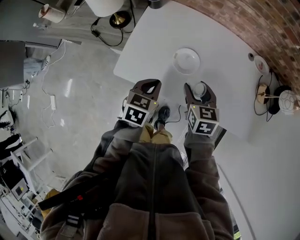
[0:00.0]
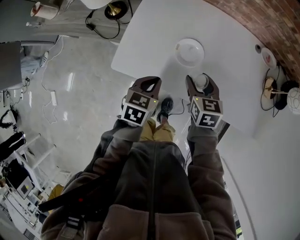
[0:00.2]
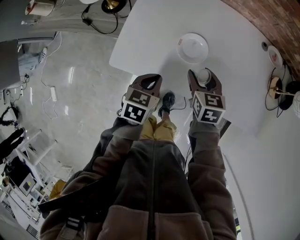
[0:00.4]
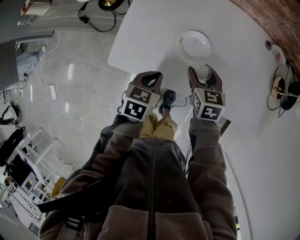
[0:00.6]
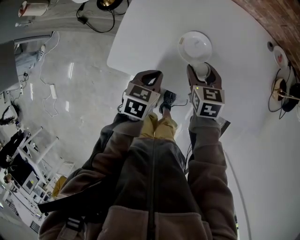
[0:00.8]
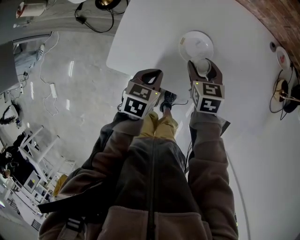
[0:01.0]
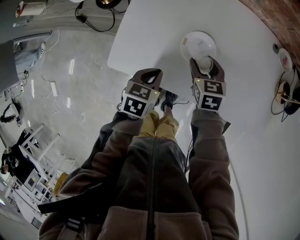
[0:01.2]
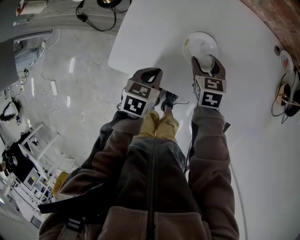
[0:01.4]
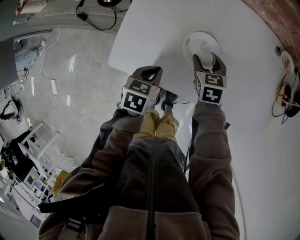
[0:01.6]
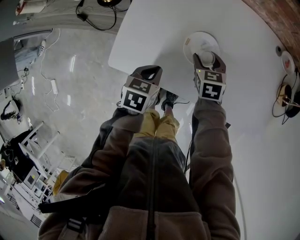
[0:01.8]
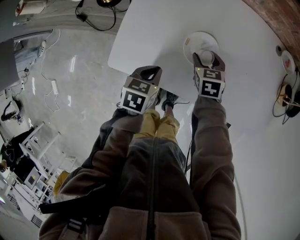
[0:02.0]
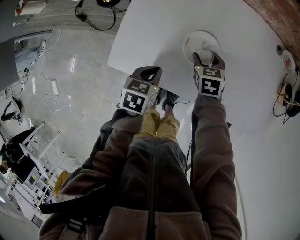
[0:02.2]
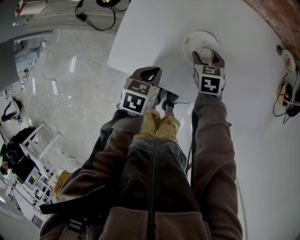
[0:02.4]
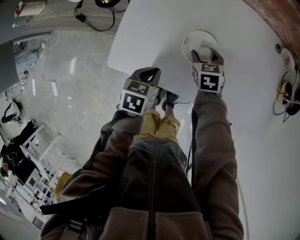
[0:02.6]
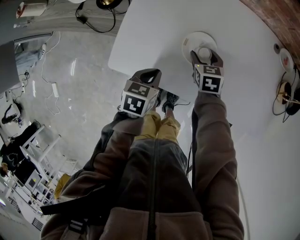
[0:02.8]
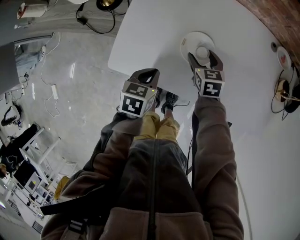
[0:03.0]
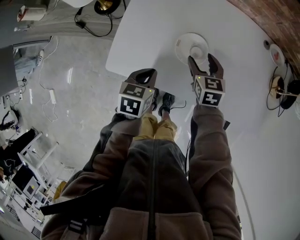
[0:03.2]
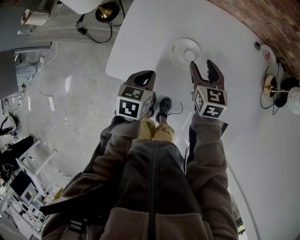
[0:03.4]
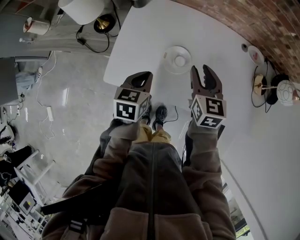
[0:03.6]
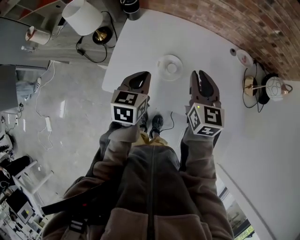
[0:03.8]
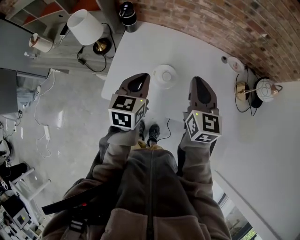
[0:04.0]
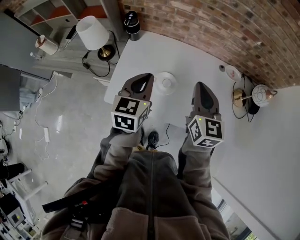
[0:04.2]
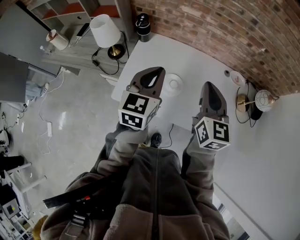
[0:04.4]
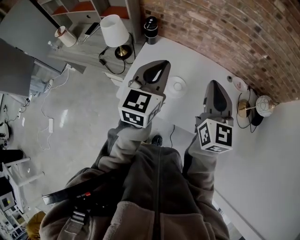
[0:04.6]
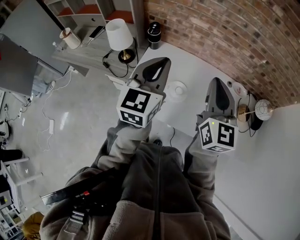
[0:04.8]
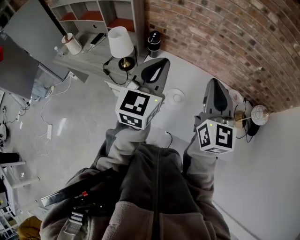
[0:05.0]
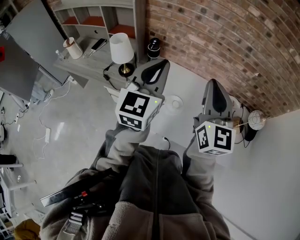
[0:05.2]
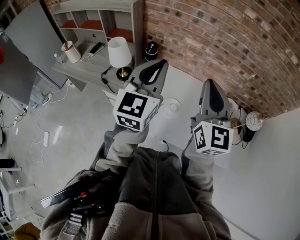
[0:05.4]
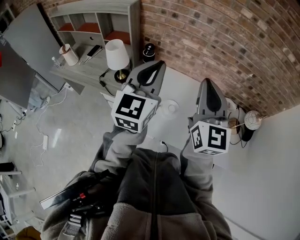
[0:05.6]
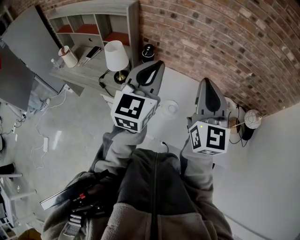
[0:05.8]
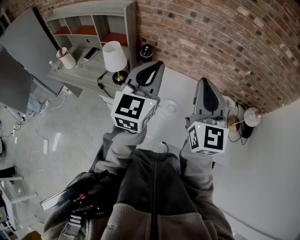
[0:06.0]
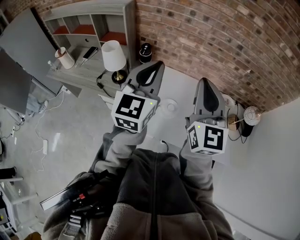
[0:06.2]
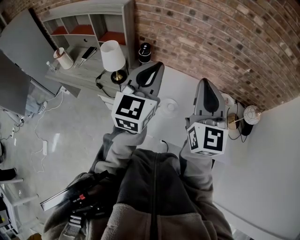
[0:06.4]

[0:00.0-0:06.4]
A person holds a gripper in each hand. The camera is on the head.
0:00.0 to 0:01.6: The right gripper travels downward and forward by about 20 cm; the left gripper goes roughly 10 cm downward.
0:01.6 to 0:03.2: There are only small adjustments of the grippers.
0:03.2 to 0:04.8: The two grippers go approximately 40 cm upward. The right gripper tilts its fingers some 40 degrees upward, and closes its fingers; the left gripper tilts its fingers roughly 50 degrees upward.
0:04.8 to 0:06.4: Both grippers move upward, some 5 cm.

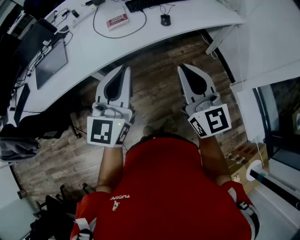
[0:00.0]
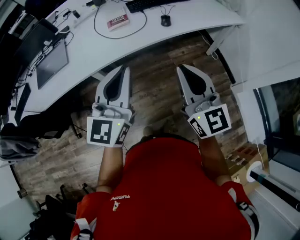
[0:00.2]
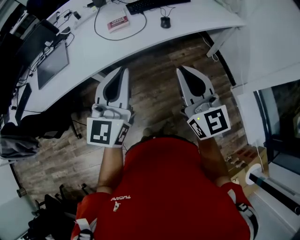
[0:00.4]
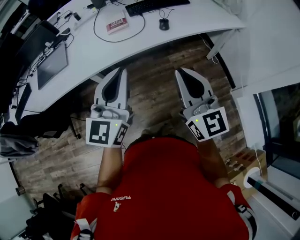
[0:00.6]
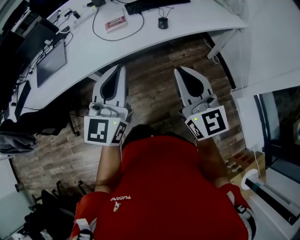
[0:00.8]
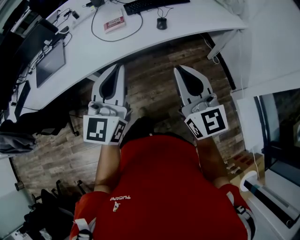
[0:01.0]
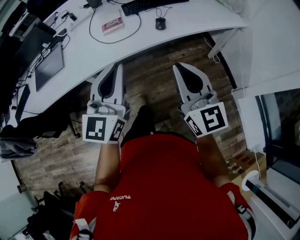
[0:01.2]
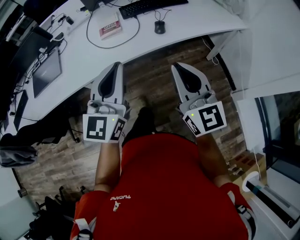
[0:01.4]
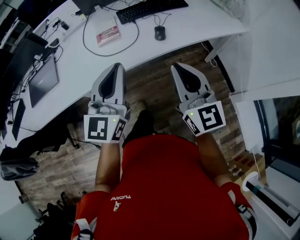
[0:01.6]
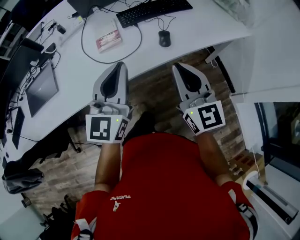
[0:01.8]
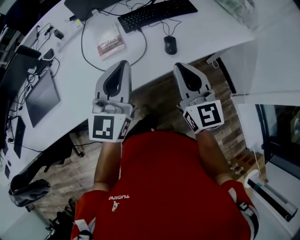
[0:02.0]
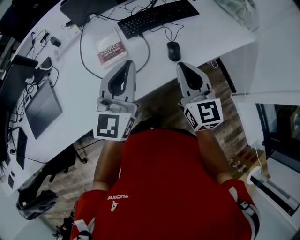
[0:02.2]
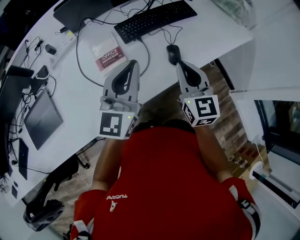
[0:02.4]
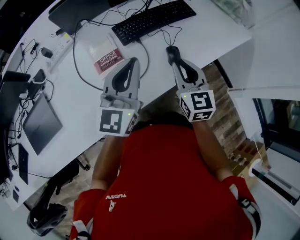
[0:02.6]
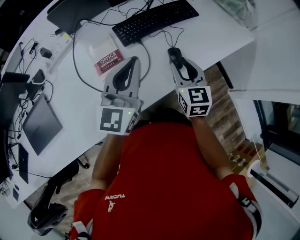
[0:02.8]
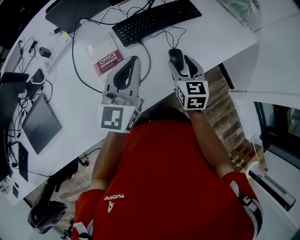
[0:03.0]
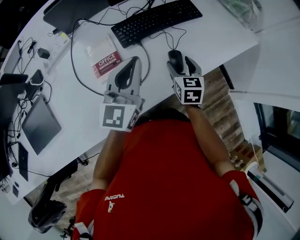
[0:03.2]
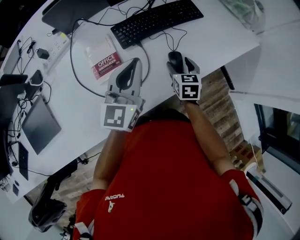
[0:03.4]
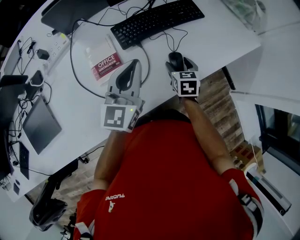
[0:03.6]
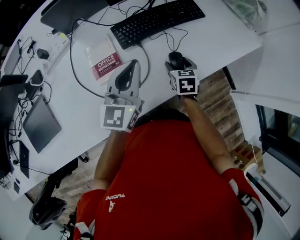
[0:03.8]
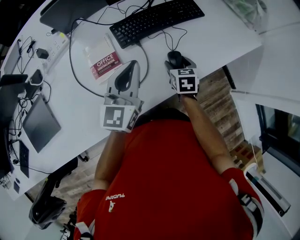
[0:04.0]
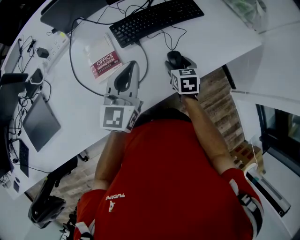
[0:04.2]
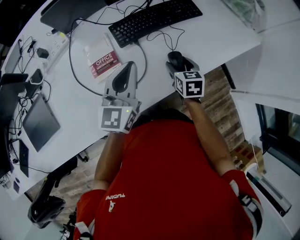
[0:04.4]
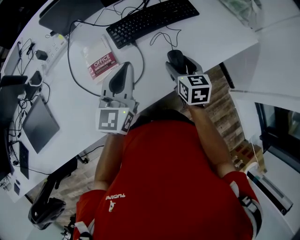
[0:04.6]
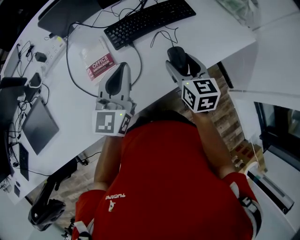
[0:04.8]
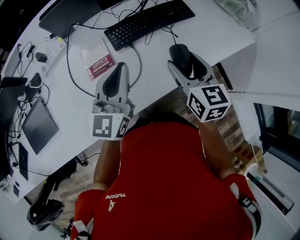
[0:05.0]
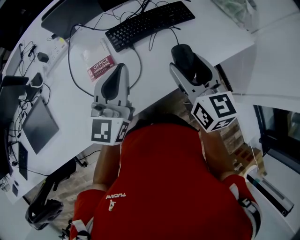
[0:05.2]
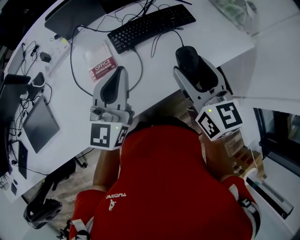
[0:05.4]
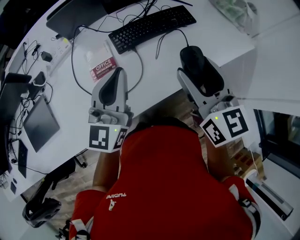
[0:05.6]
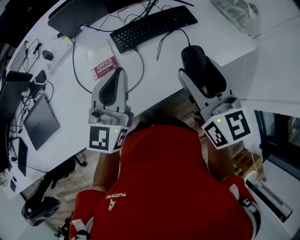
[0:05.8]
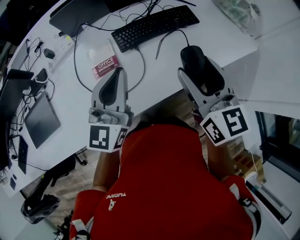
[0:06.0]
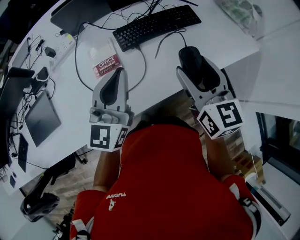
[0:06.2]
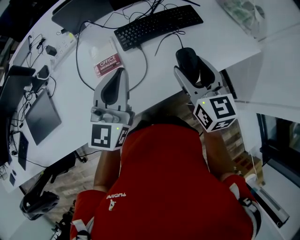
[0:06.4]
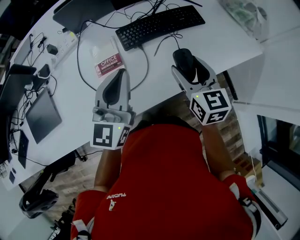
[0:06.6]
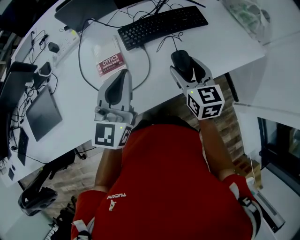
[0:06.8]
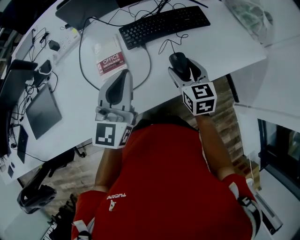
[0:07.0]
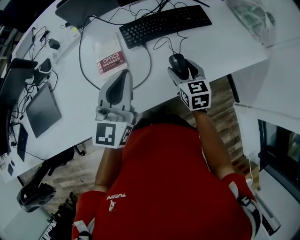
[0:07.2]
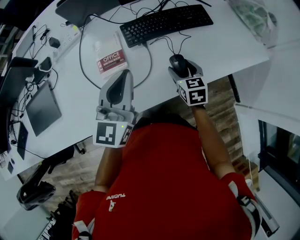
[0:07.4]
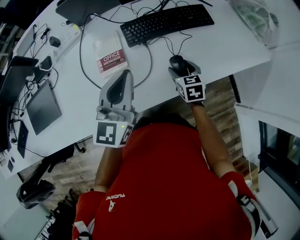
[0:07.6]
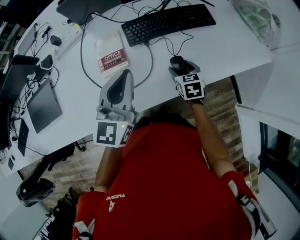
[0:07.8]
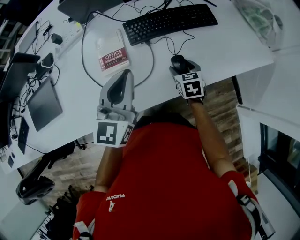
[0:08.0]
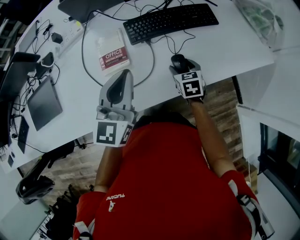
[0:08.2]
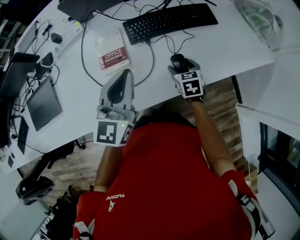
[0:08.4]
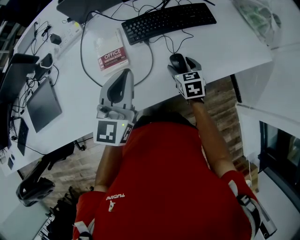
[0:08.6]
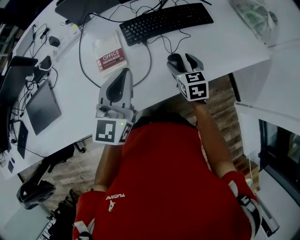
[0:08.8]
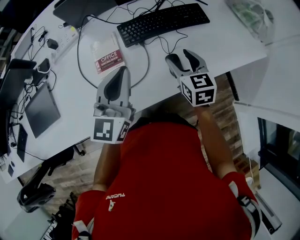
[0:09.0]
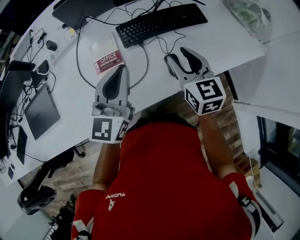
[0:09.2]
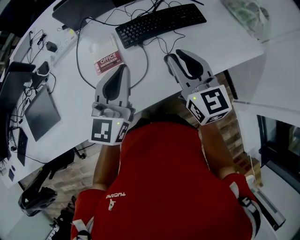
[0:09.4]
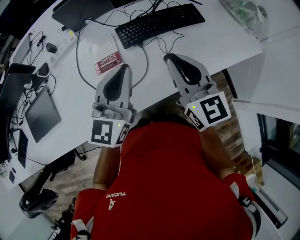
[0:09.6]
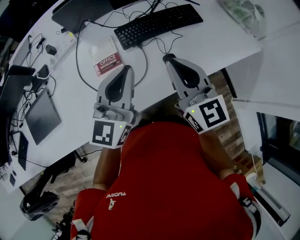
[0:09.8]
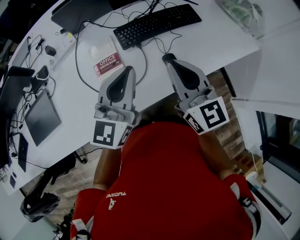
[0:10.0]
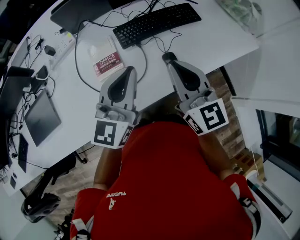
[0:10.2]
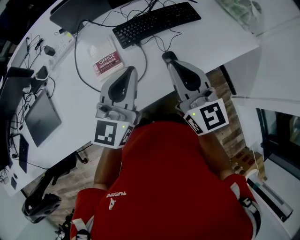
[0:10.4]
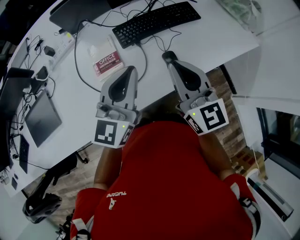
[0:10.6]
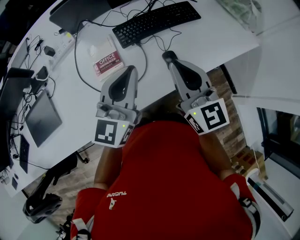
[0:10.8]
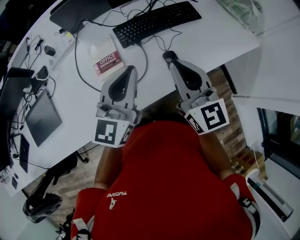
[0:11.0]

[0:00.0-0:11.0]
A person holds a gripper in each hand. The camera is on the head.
0:00.0 to 0:01.6: The two grippers go some 15 cm forward.
0:01.6 to 0:03.2: The right gripper goes about 40 cm forward and downward, points its fingers roughly 40 degrees further downward, and opens up. Meanwhile the left gripper travels forward by roughly 30 cm.
0:03.2 to 0:04.8: The right gripper heads upward, covering about 10 cm.
0:04.8 to 0:06.2: The right gripper shifts roughly 15 cm upward. The left gripper heads upward, covering roughly 5 cm.
0:06.2 to 0:07.8: The right gripper moves downward, some 25 cm, and tilts its fingers about 30 degrees downward.
0:07.8 to 0:09.4: The right gripper is displaced upward by some 25 cm, points its fingers some 40 degrees further upward, and closes its fingers.
0:09.4 to 0:11.0: The right gripper ends up approximately 5 cm from where it was.

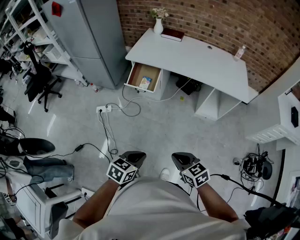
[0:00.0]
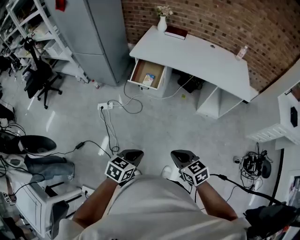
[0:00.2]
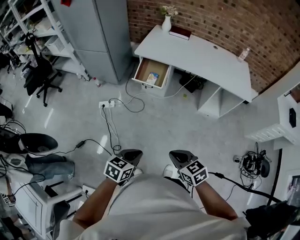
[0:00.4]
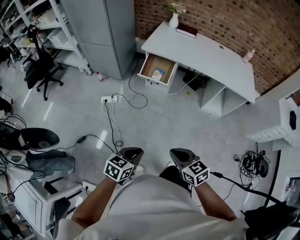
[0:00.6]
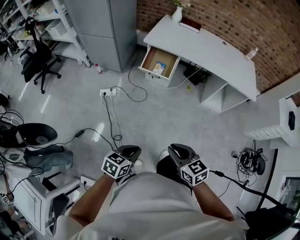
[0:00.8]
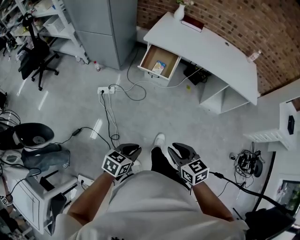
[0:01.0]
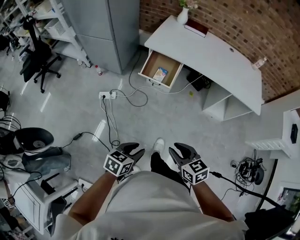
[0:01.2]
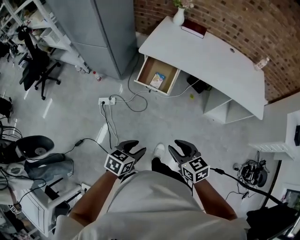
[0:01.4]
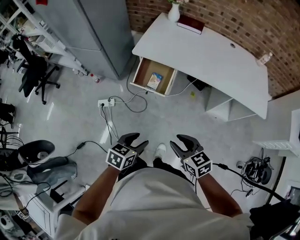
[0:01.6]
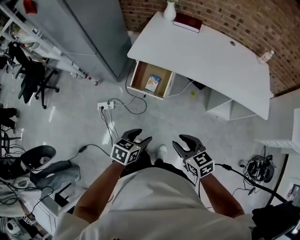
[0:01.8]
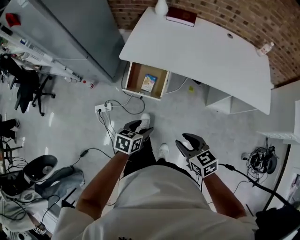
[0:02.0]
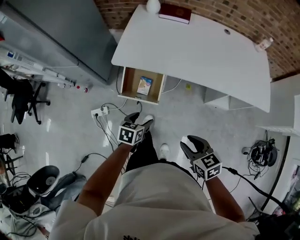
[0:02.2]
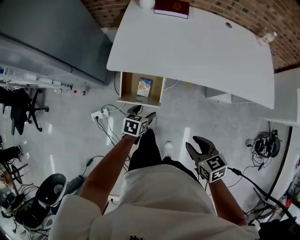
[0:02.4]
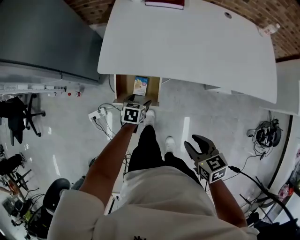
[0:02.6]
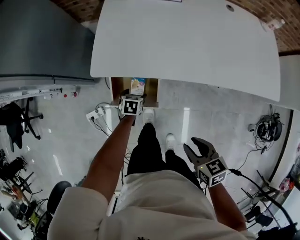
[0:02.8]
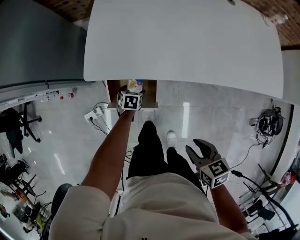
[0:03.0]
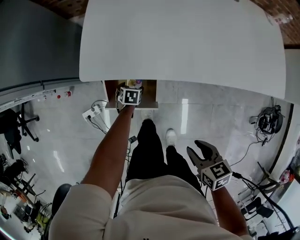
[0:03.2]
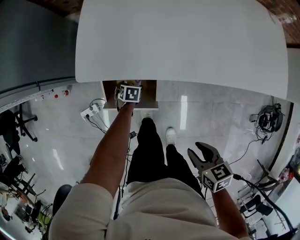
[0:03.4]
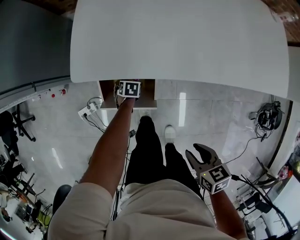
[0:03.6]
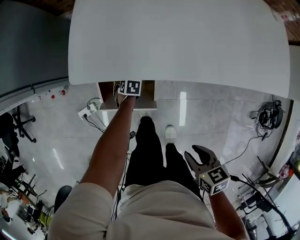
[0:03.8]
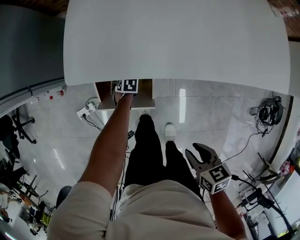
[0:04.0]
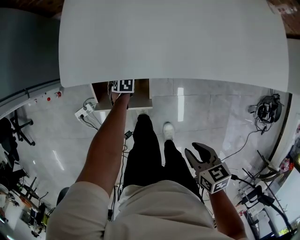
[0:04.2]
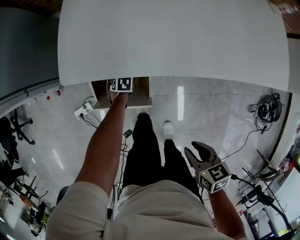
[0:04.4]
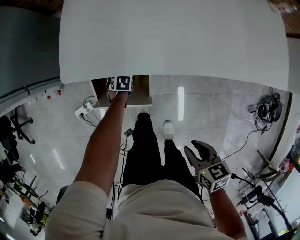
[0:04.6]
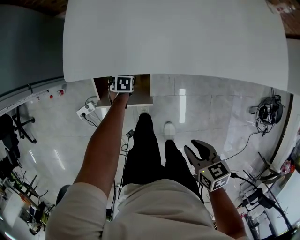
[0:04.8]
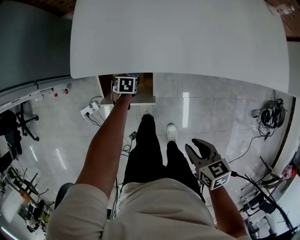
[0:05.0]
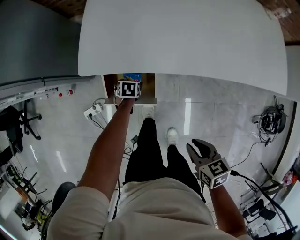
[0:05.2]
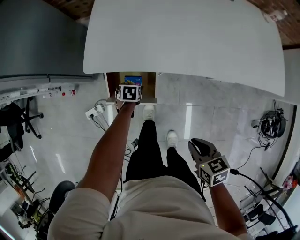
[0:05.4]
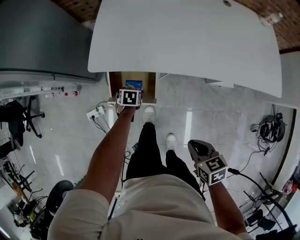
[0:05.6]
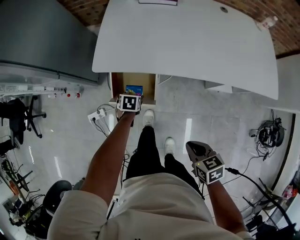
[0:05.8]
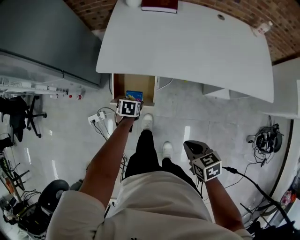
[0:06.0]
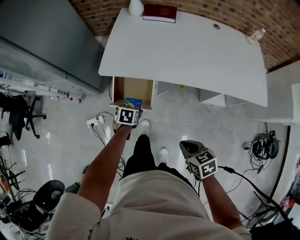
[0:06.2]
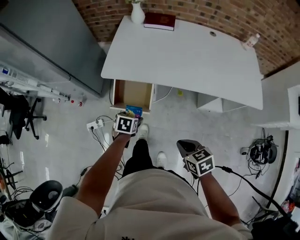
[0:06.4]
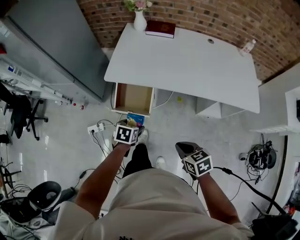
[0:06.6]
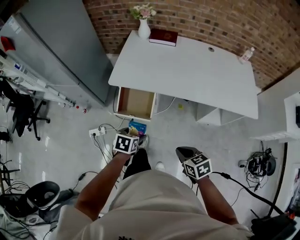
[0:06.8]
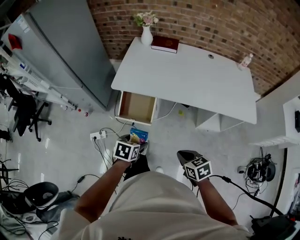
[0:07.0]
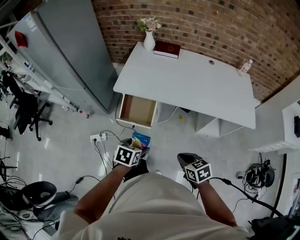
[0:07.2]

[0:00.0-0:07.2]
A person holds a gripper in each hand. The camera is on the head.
0:00.0 to 0:01.4: The two grippers go approximately 25 cm forward and to the left. The left gripper opens up. Meanwhile the right gripper opens.
0:01.4 to 0:02.8: The right gripper shifts about 35 cm forward, and rotates about 30 degrees. Meanwhile the left gripper shifts about 70 cm forward and downward, turns by roughly 20 degrees, and opens.
0:02.8 to 0:04.4: The left gripper goes some 20 cm downward, and turns by some 20 degrees. The right gripper heads downward, covering approximately 10 cm.
0:04.4 to 0:05.8: The right gripper moves upward, roughly 10 cm, and closes up. The left gripper heads upward, covering some 25 cm, and changes its angle by about 20 degrees.
0:05.8 to 0:07.2: The right gripper heads upward and backward, covering roughly 15 cm. Meanwhile the left gripper travels backward and upward by approximately 40 cm.
